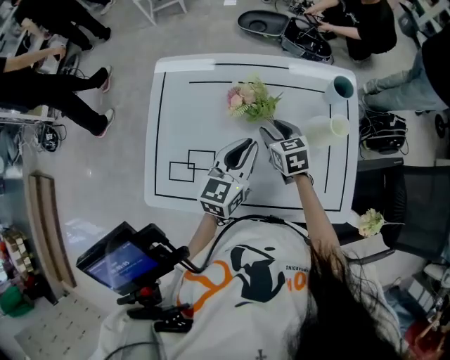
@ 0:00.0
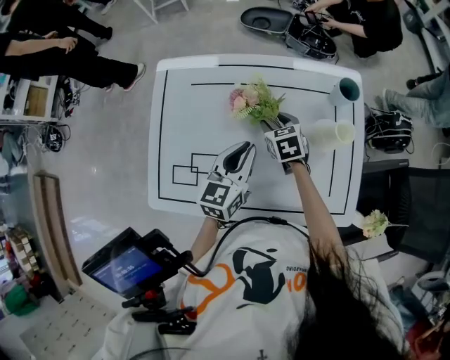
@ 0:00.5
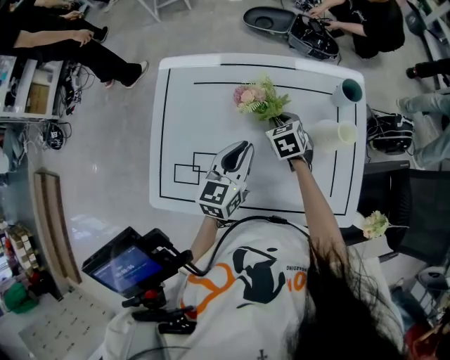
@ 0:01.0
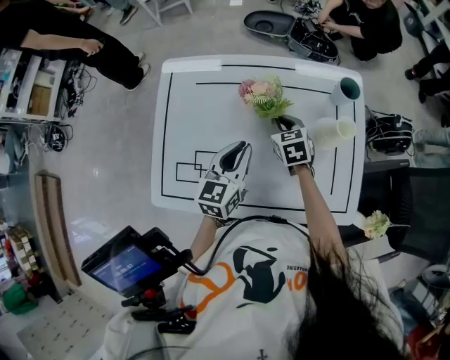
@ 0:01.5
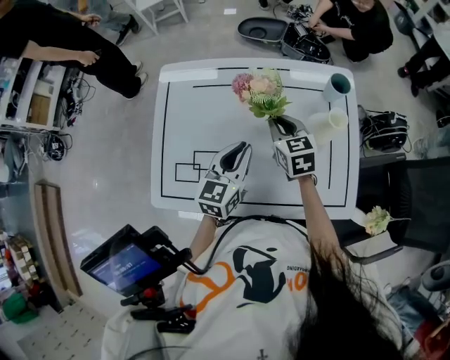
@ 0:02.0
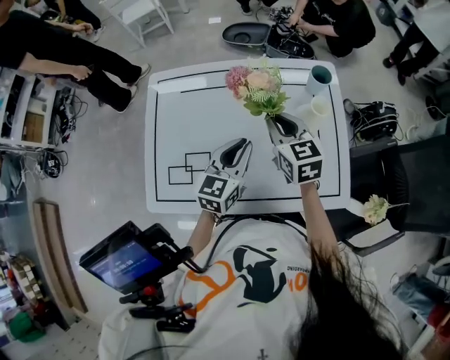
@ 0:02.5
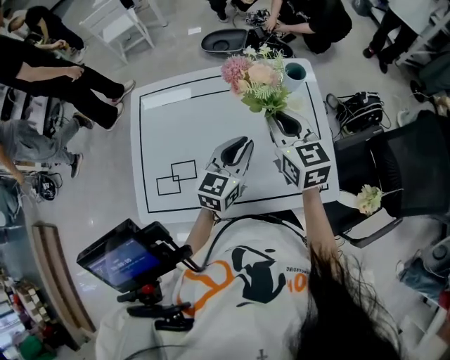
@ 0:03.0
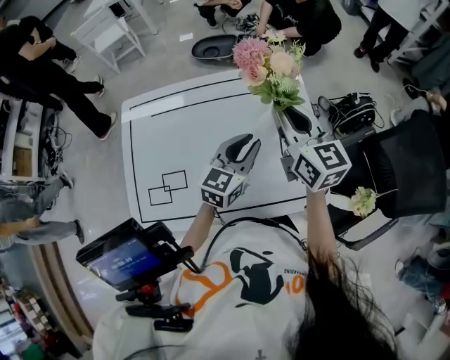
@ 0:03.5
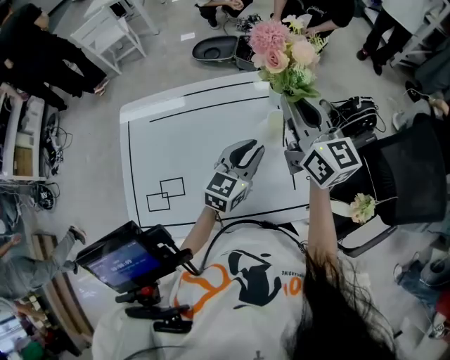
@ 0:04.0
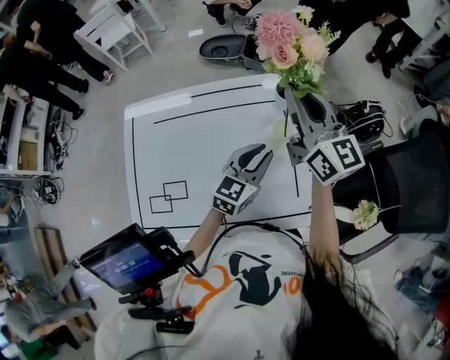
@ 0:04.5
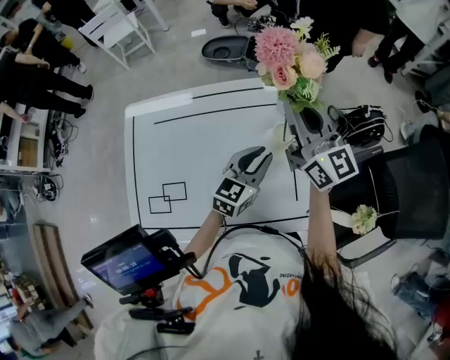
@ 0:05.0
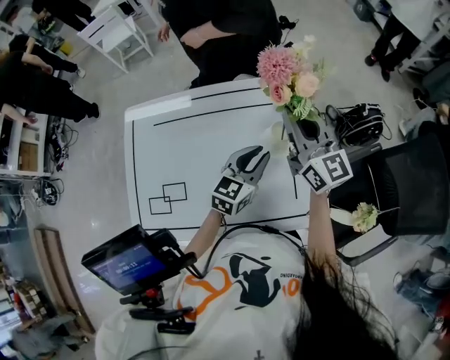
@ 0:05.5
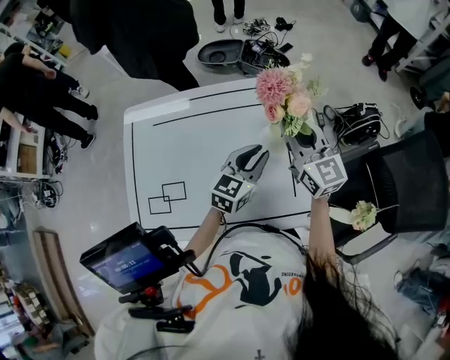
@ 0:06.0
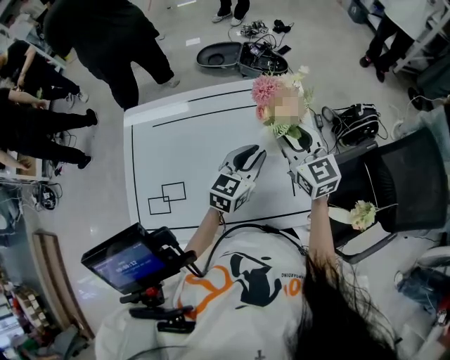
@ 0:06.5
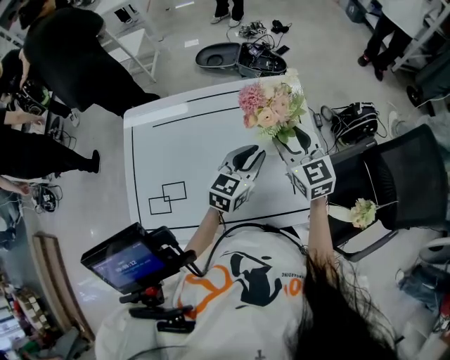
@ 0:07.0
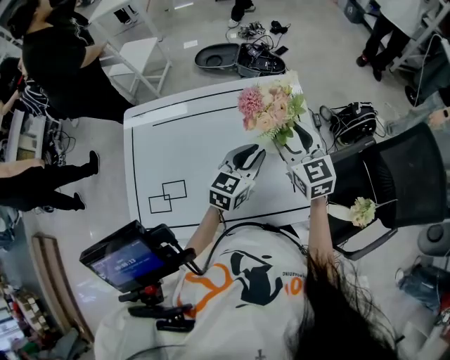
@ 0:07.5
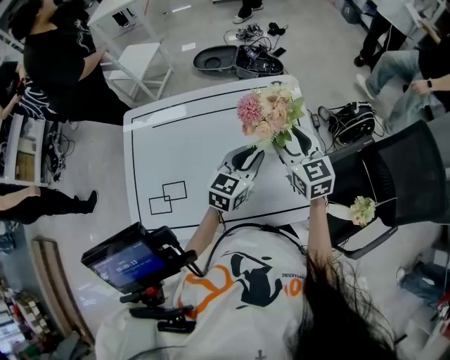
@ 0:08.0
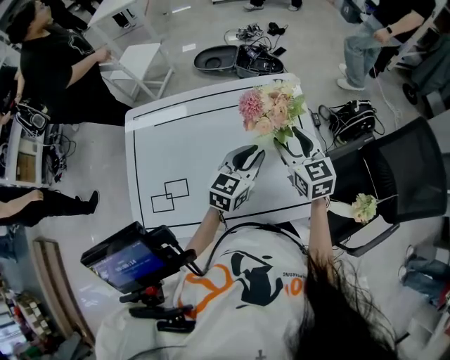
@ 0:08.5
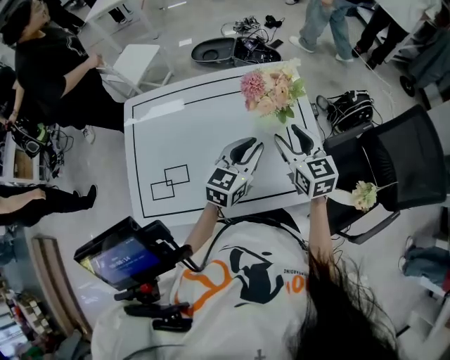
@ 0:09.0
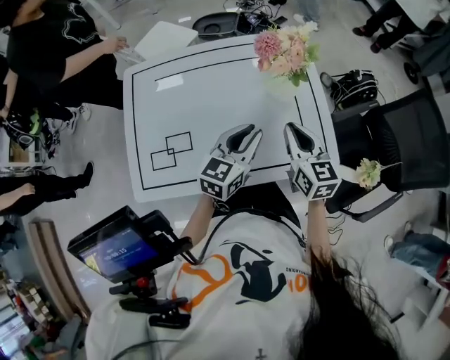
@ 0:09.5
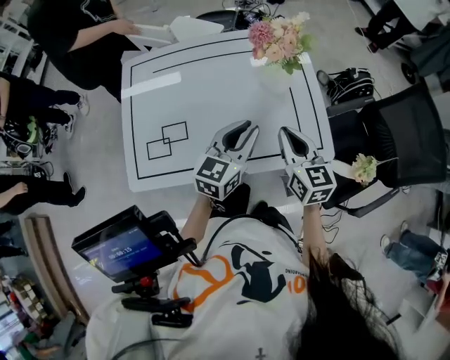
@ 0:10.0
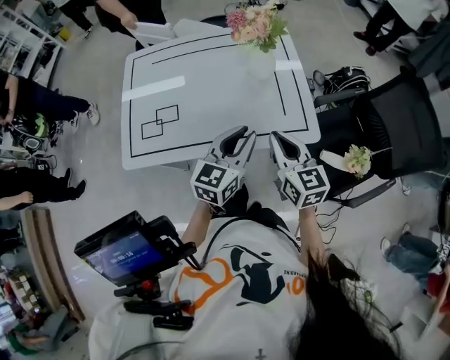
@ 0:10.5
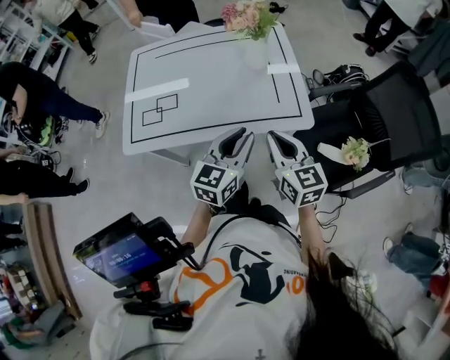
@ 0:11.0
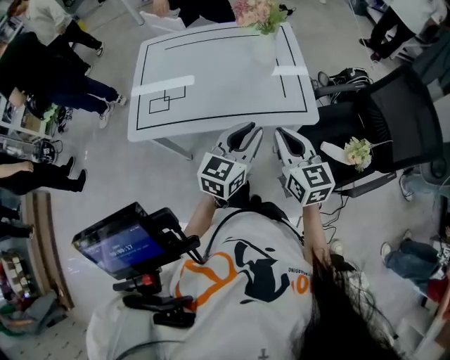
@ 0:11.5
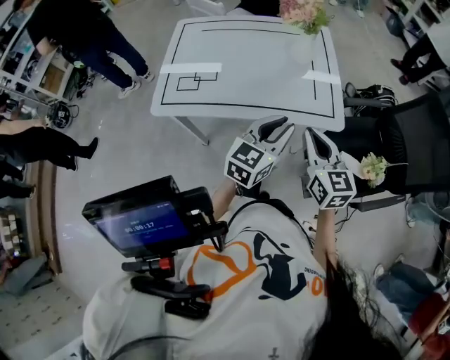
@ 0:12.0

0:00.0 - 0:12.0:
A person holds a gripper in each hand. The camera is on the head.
0:00.0 - 0:02.0: The right gripper heads upward, covering roughly 5 cm, and closes up.
0:02.0 - 0:04.0: The left gripper heads to the right, covering roughly 20 cm, and turns by roughly 20 degrees. The right gripper travels upward and to the right by approximately 25 cm, and tips its fingers upward by some 30 degrees.
0:04.0 - 0:06.0: The right gripper heads downward, covering some 5 cm.
0:06.0 - 0:08.0: The right gripper heads downward, covering some 5 cm, and opens its fingers.
0:08.0 - 0:10.0: The two grippers go approximately 15 cm backward. The right gripper closes its fingers.
0:10.0 - 0:12.0: Both grippers travel together backward, some 20 cm.

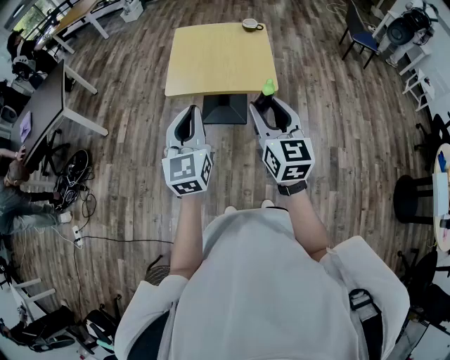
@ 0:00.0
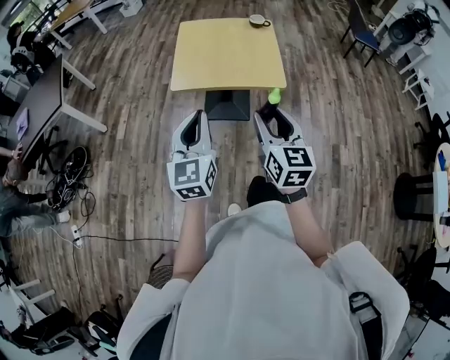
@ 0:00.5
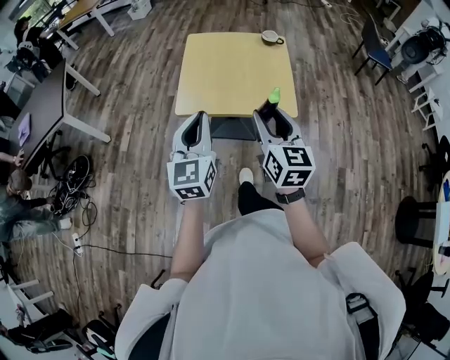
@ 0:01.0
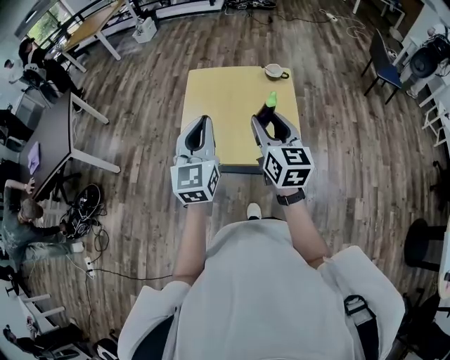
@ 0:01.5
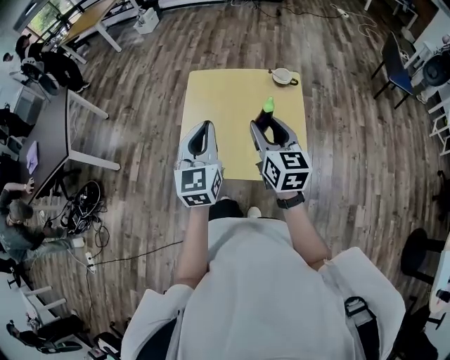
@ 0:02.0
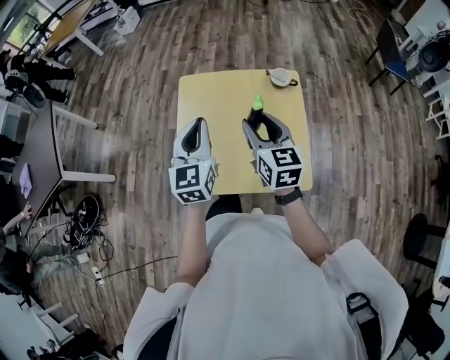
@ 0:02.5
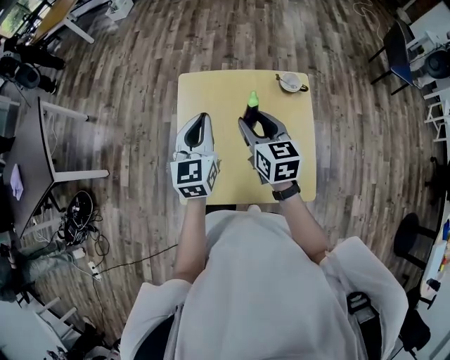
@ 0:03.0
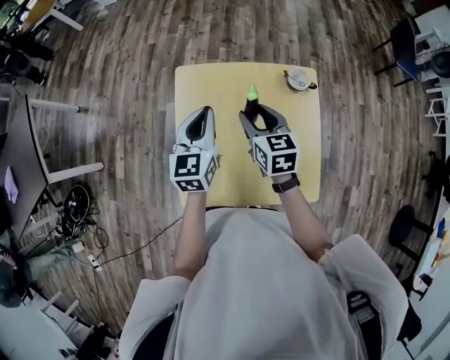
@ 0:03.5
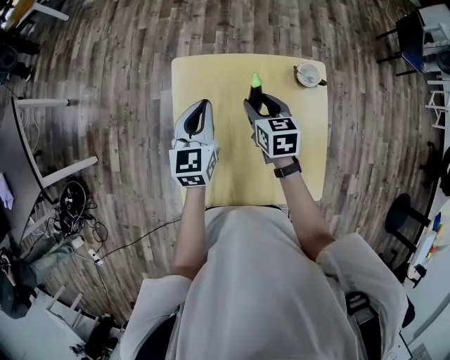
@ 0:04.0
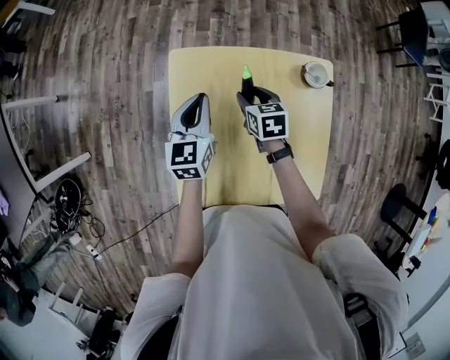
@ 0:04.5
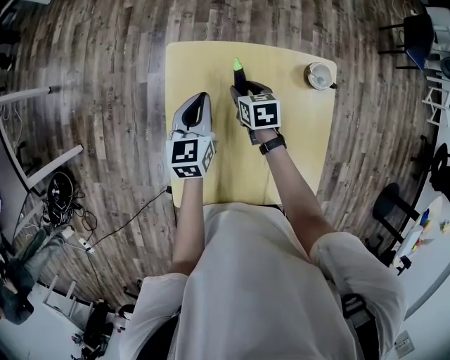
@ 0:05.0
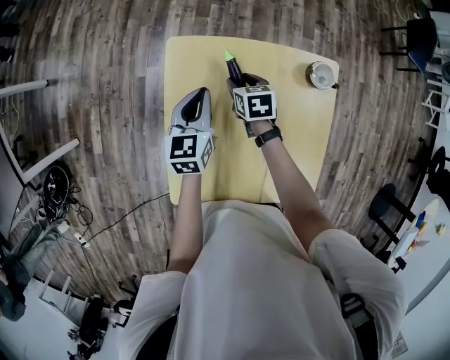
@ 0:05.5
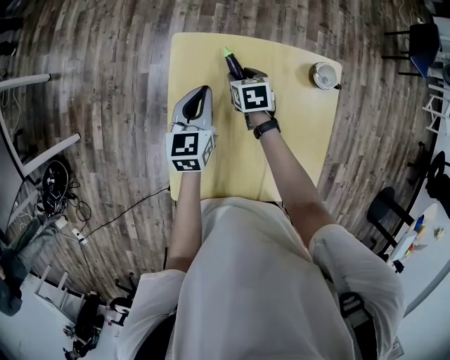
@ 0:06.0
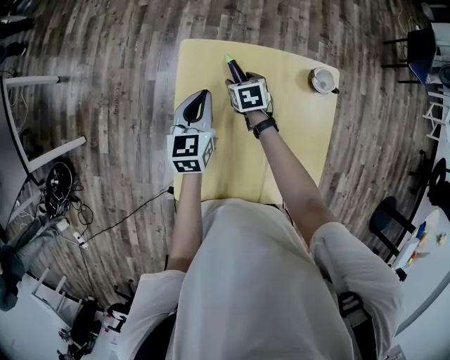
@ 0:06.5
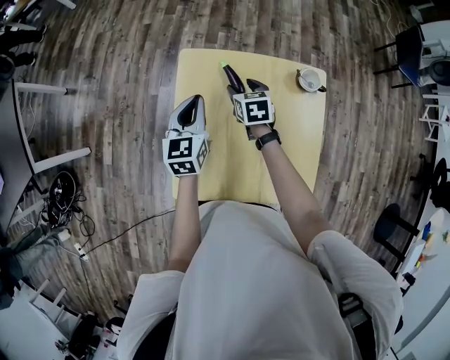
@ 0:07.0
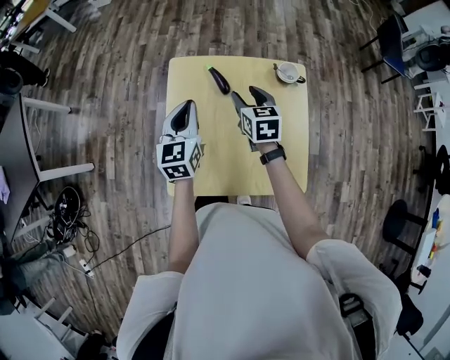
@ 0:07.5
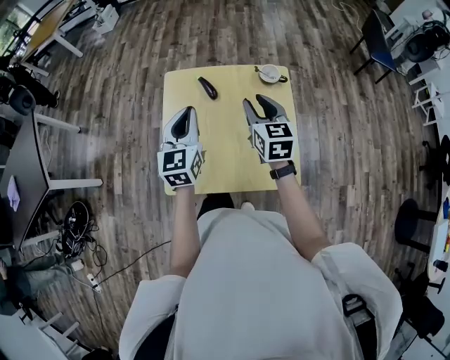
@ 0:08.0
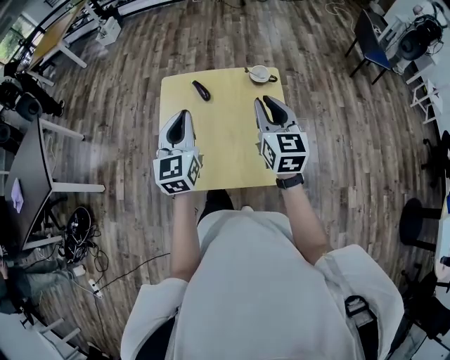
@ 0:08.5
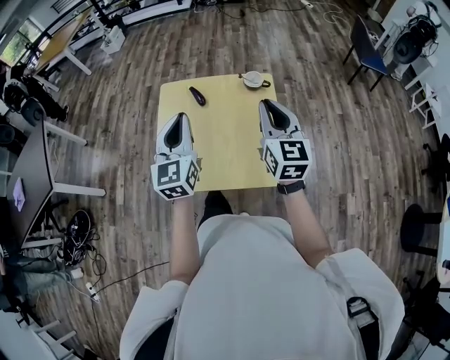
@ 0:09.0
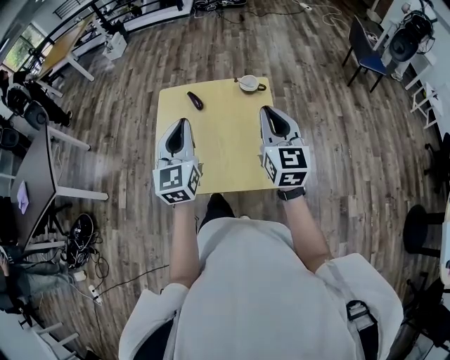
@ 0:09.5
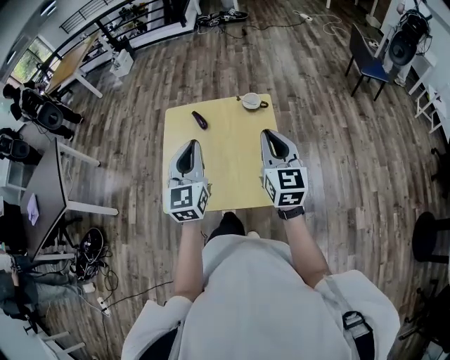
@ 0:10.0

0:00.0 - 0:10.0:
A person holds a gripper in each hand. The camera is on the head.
0:00.0 - 0:02.0: The two grippers travel together, forward, about 40 cm.
0:02.0 - 0:04.0: Both grippers travel together forward and downward, approximately 35 cm. The right gripper swivels approximately 30 degrees.
0:04.0 - 0:06.0: The right gripper is displaced downward and forward by approximately 15 cm, while the left gripper travels downward by approximately 10 cm.
0:06.0 - 0:08.0: The left gripper moves upward and backward, about 25 cm, and swivels approximately 20 degrees; the right gripper moves upward, backward and to the right, about 40 cm, and tilts its fingers approximately 40 degrees upward.
0:08.0 - 0:10.0: The left gripper shifts approximately 20 cm to the right, backward and upward; the right gripper goes about 20 cm backward, to the right and upward, and closes.

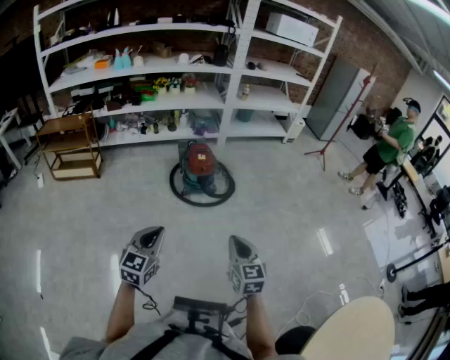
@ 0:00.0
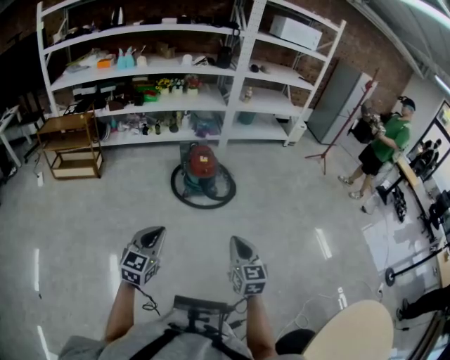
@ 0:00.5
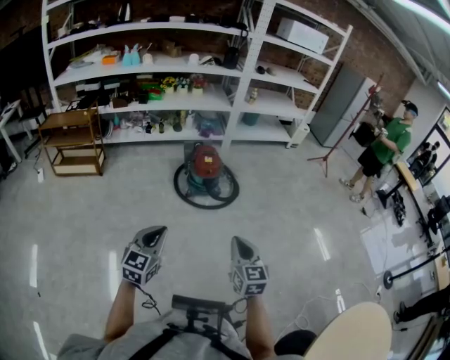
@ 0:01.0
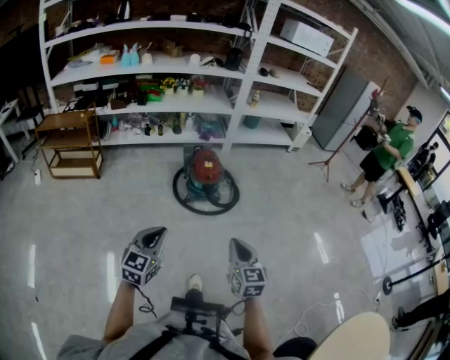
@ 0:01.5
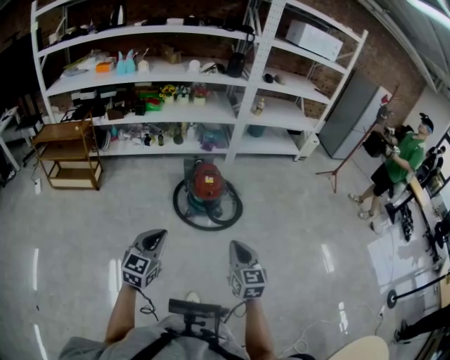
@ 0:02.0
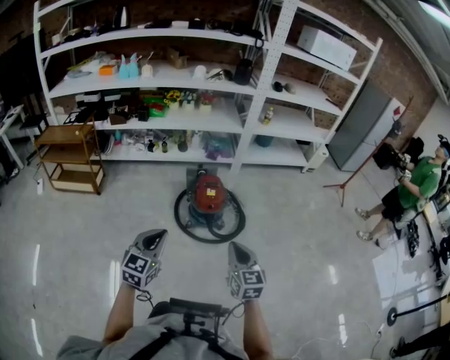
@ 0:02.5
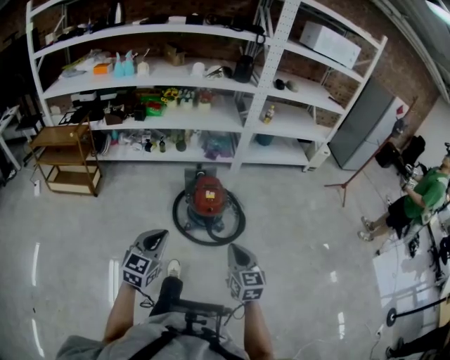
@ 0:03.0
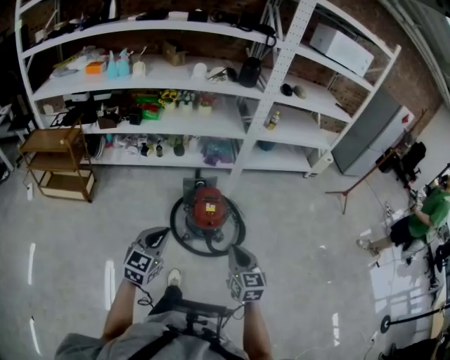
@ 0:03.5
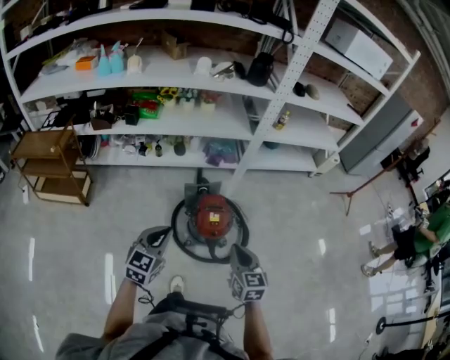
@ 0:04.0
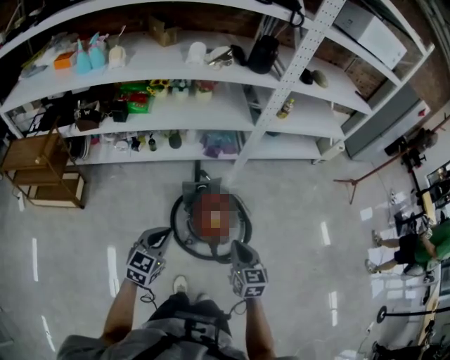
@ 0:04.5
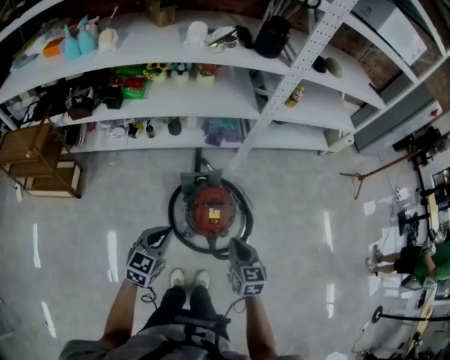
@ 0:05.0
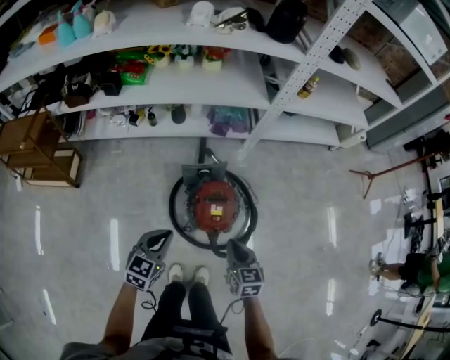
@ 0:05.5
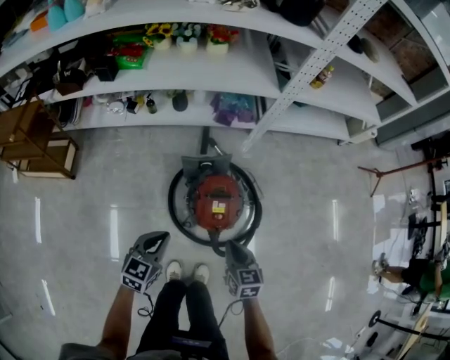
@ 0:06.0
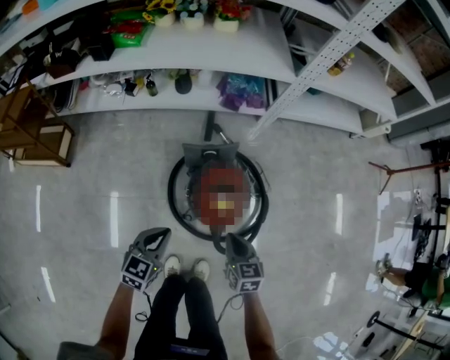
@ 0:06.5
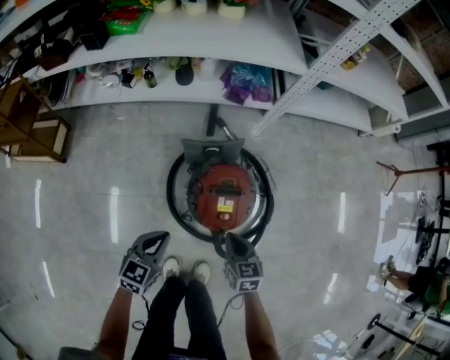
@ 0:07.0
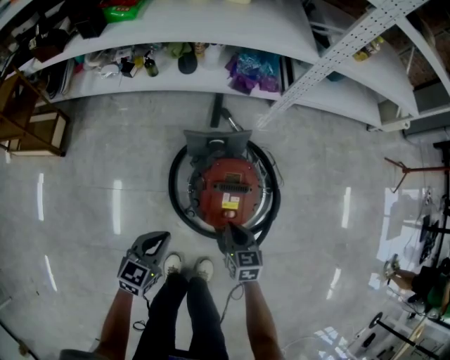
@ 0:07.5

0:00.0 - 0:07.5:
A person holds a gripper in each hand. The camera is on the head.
0:00.0 - 0:02.0: Both grippers travel together forward, roughly 25 cm.
0:02.0 - 0:04.0: Both grippers are carried forward, roughly 40 cm.
0:04.0 - 0:05.5: The right gripper travels forward and downward by about 25 cm; the left gripper is displaced downward and forward by some 20 cm.
0:05.5 - 0:07.5: Both grippers move downward, some 25 cm.
